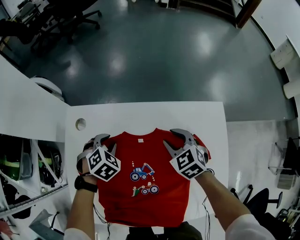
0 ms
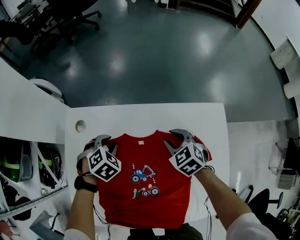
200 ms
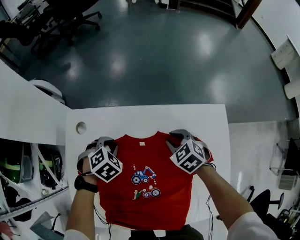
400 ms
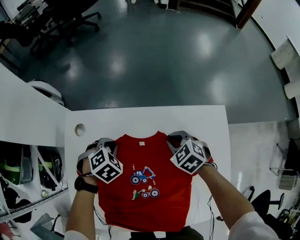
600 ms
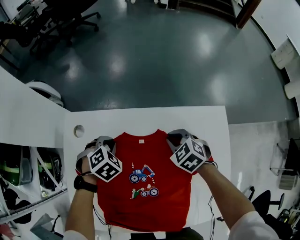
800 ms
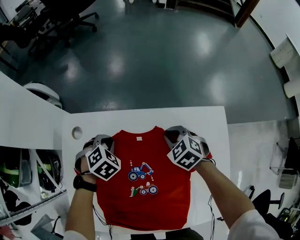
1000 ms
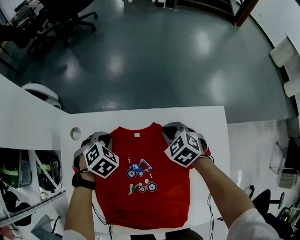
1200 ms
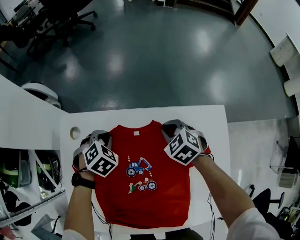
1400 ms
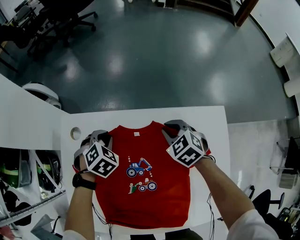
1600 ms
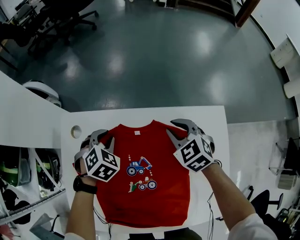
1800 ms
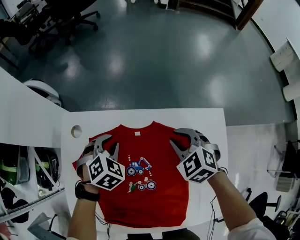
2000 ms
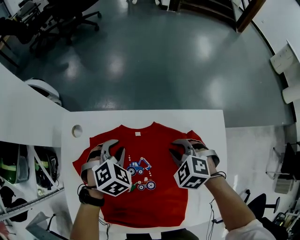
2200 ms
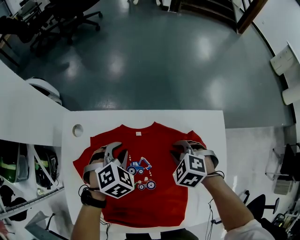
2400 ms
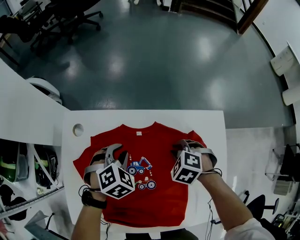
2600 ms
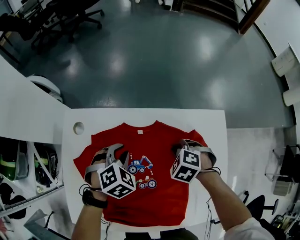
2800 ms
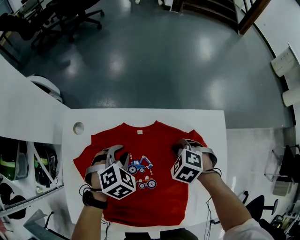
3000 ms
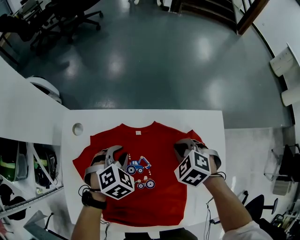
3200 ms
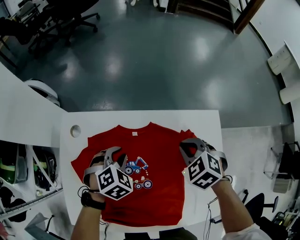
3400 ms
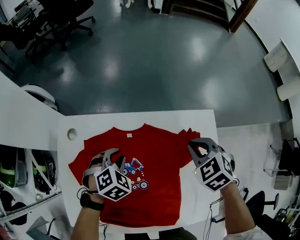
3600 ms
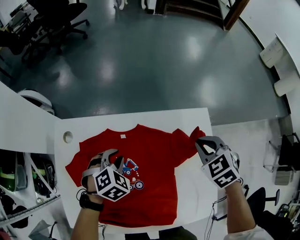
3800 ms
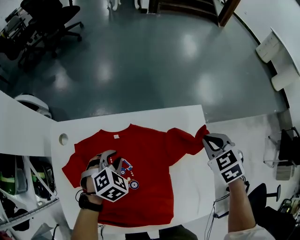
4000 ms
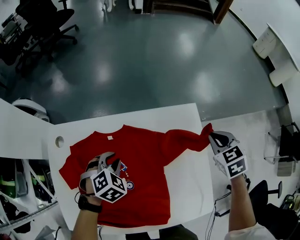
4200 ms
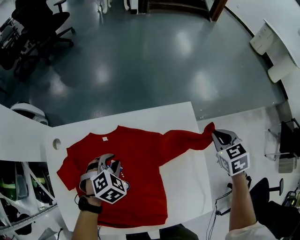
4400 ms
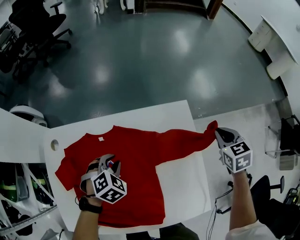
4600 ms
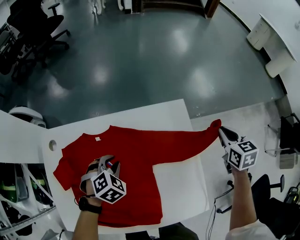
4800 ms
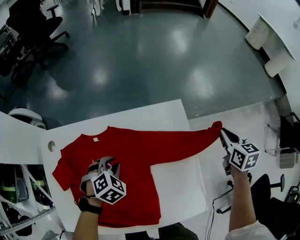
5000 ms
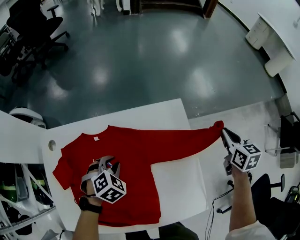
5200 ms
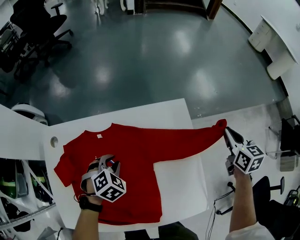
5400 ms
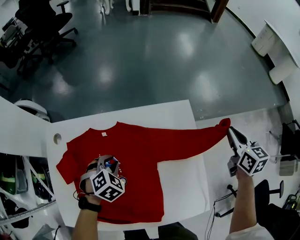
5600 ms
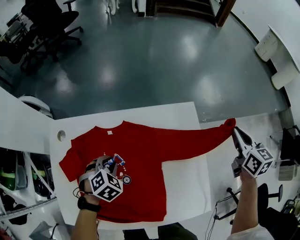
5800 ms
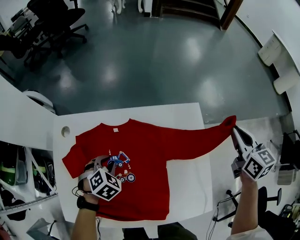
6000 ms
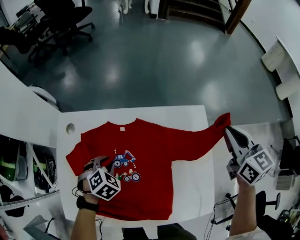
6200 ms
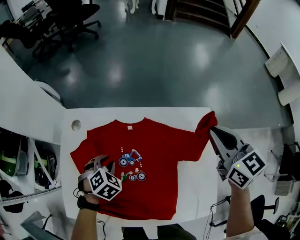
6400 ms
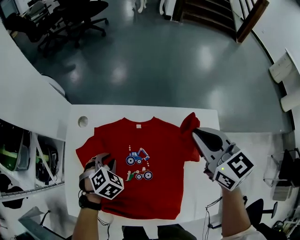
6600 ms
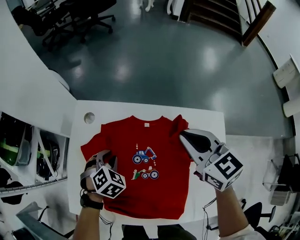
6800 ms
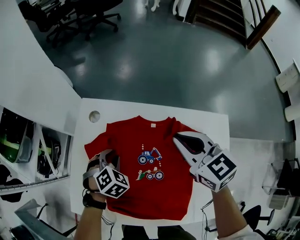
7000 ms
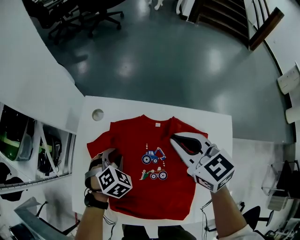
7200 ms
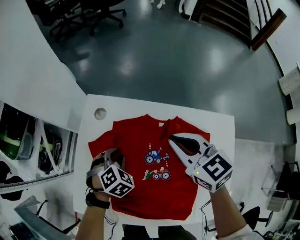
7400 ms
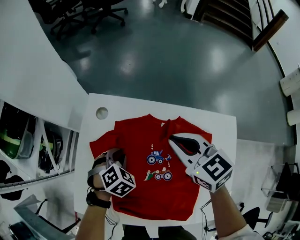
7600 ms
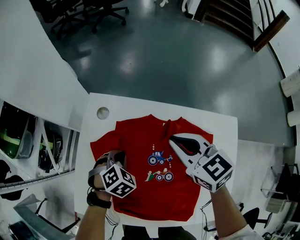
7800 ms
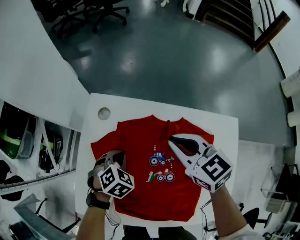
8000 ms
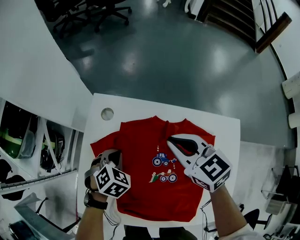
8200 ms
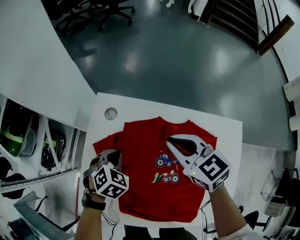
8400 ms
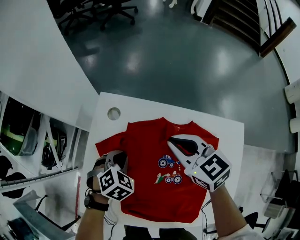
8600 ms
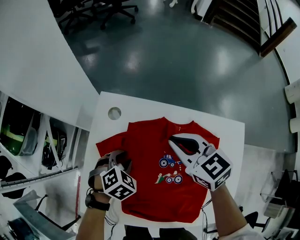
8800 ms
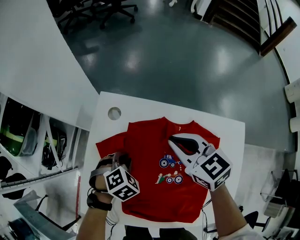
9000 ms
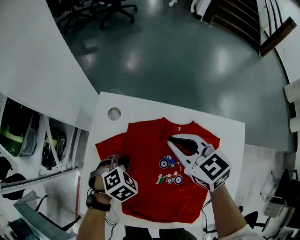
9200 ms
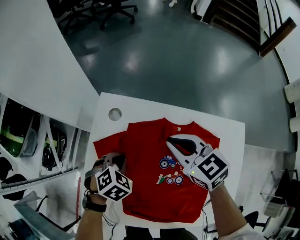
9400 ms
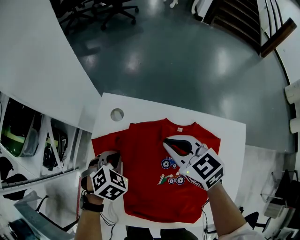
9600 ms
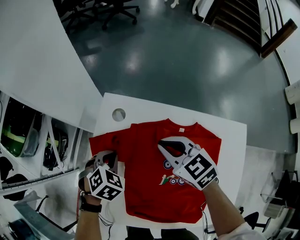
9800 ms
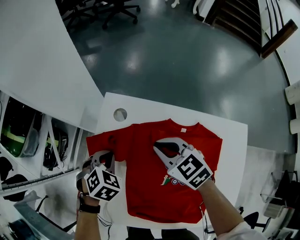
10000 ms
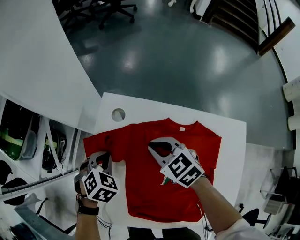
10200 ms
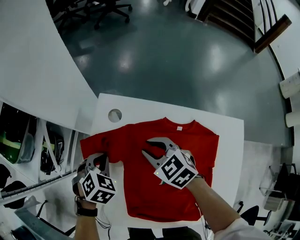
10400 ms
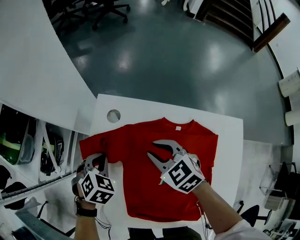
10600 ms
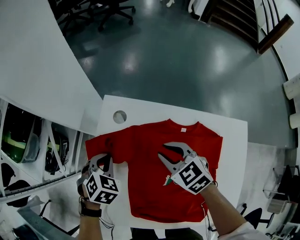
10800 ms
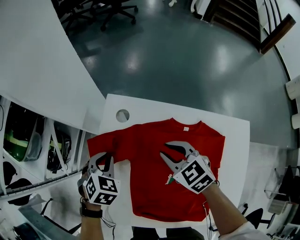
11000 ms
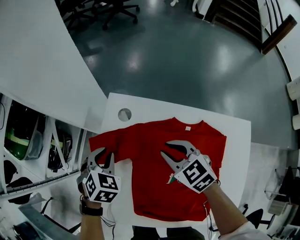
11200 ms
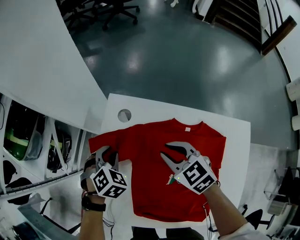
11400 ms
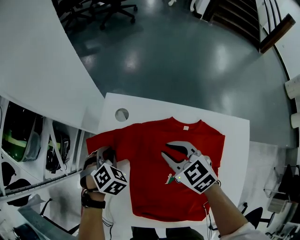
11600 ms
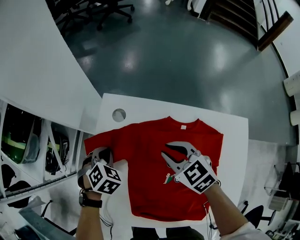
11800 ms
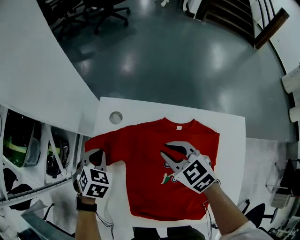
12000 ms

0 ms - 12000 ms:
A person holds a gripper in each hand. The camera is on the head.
0 ms - 1600 ms: Both grippers travel together forward, some 5 cm. The right gripper closes.
1600 ms - 3000 ms: The left gripper ends up some 10 cm from where it was. The right gripper reaches about 5 cm upward, then returns, and turns by approximately 30 degrees.
3000 ms - 4400 ms: The right gripper heads to the right, covering approximately 30 cm, and twists about 40 degrees clockwise, seen from behind, while the left gripper travels to the right by some 10 cm.
4400 ms - 6000 ms: The right gripper is displaced upward by some 10 cm, and changes its angle by some 30 degrees; the left gripper goes roughly 10 cm to the left and backward.
6000 ms - 7600 ms: The right gripper moves about 40 cm, and changes its angle by approximately 40 degrees; the left gripper shifts by approximately 15 cm.
7600 ms - 9000 ms: The right gripper changes place by some 5 cm, while the left gripper closes, then reopens.
9000 ms - 10400 ms: The left gripper moves to the left and forward, approximately 10 cm. Meanwhile the right gripper goes about 15 cm downward and to the left.
10400 ms - 12000 ms: The left gripper opens, then closes again. Meanwhile the right gripper heads to the right, covering about 5 cm.

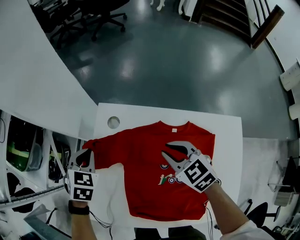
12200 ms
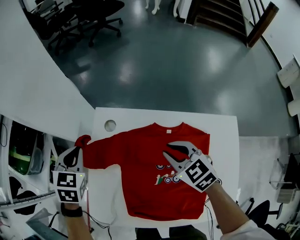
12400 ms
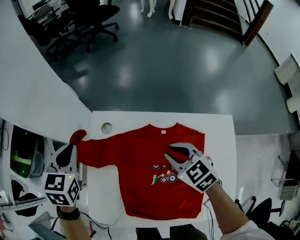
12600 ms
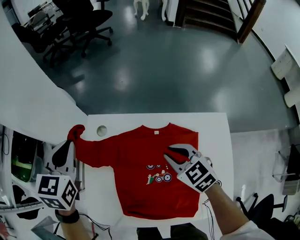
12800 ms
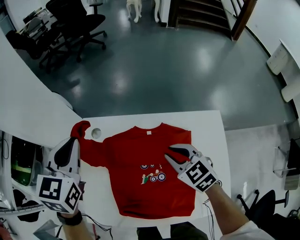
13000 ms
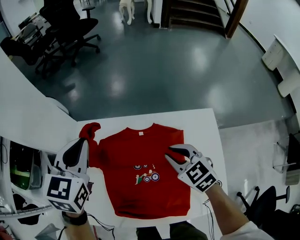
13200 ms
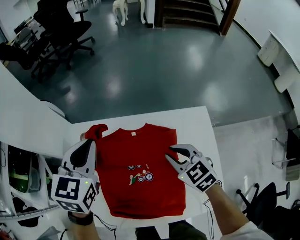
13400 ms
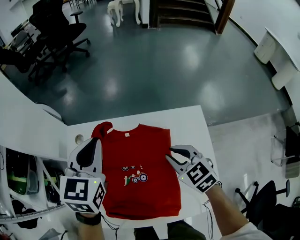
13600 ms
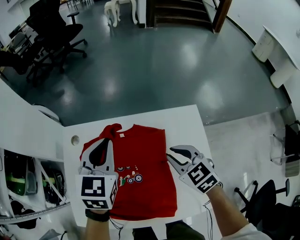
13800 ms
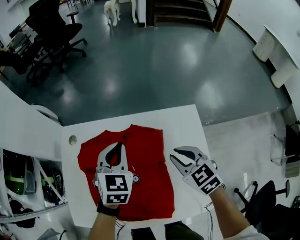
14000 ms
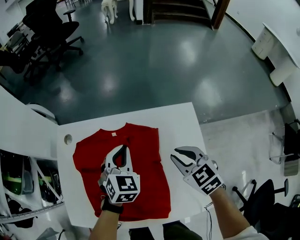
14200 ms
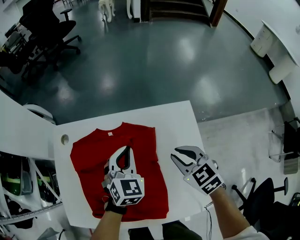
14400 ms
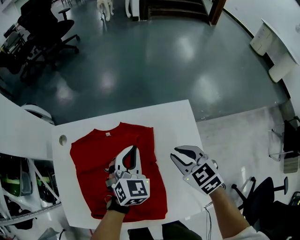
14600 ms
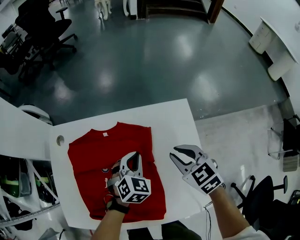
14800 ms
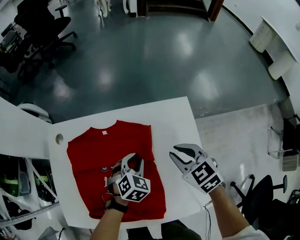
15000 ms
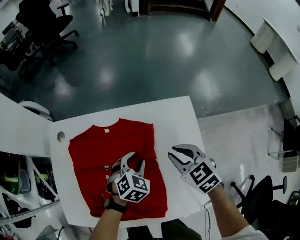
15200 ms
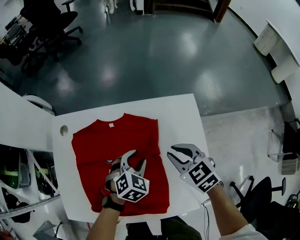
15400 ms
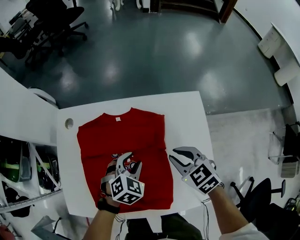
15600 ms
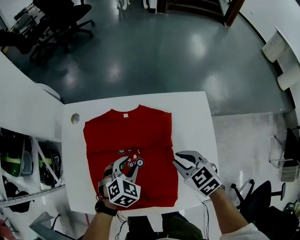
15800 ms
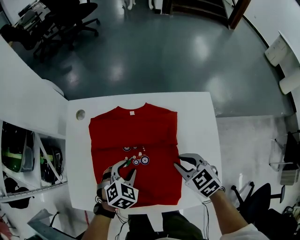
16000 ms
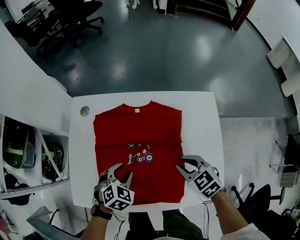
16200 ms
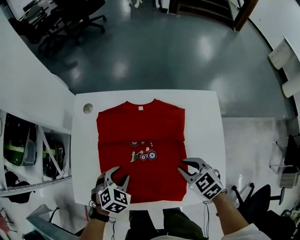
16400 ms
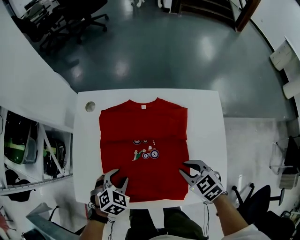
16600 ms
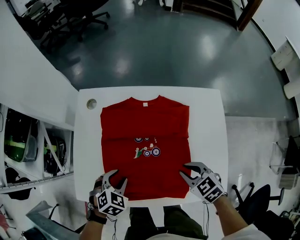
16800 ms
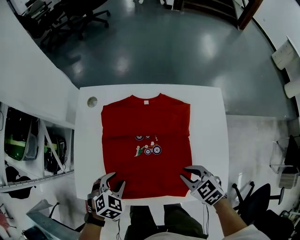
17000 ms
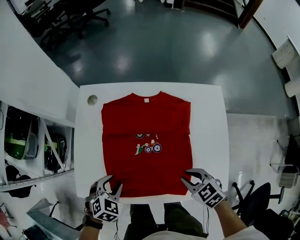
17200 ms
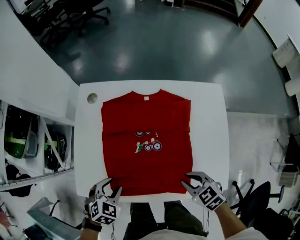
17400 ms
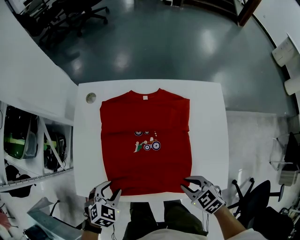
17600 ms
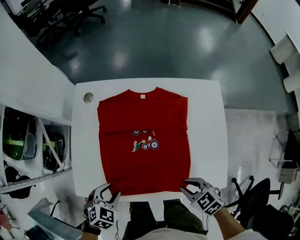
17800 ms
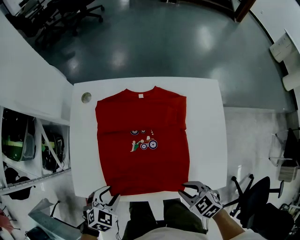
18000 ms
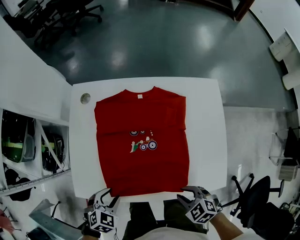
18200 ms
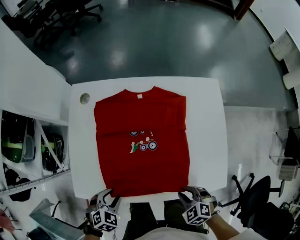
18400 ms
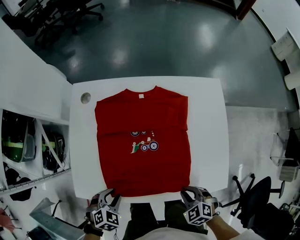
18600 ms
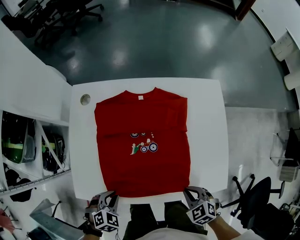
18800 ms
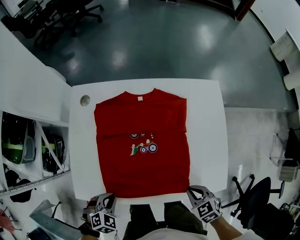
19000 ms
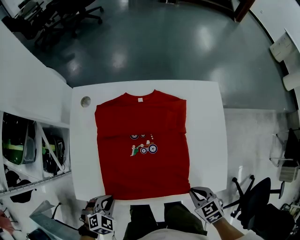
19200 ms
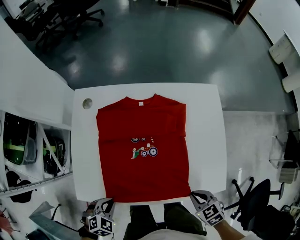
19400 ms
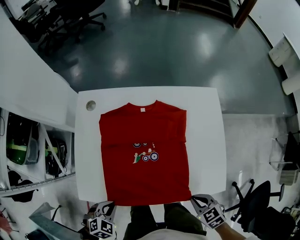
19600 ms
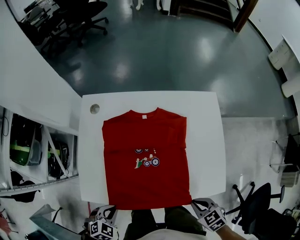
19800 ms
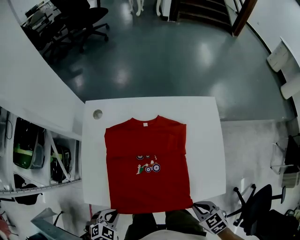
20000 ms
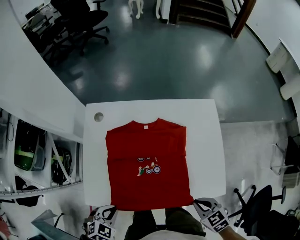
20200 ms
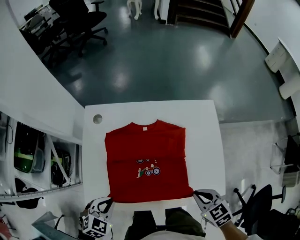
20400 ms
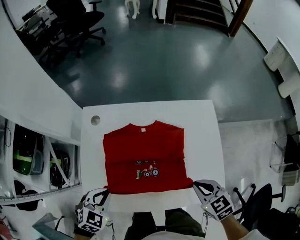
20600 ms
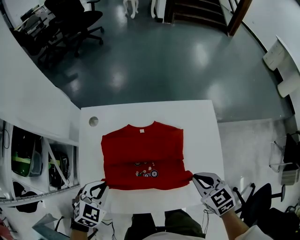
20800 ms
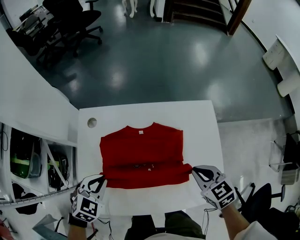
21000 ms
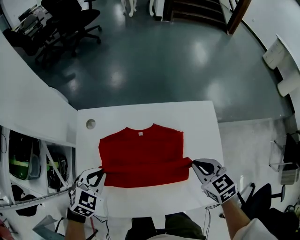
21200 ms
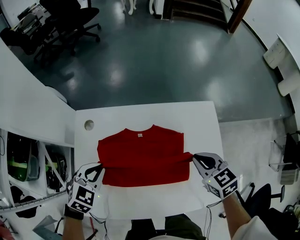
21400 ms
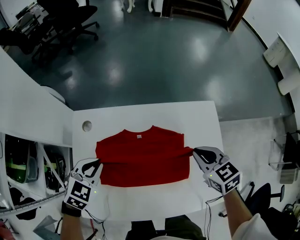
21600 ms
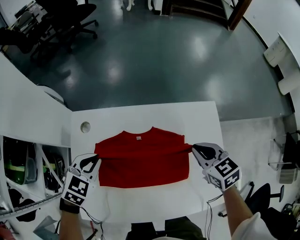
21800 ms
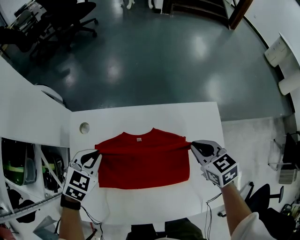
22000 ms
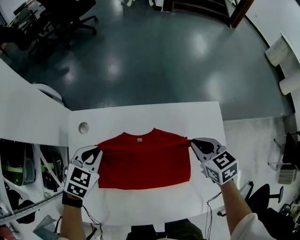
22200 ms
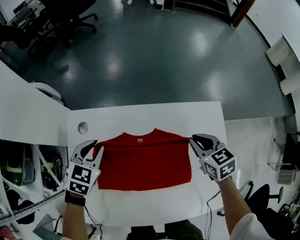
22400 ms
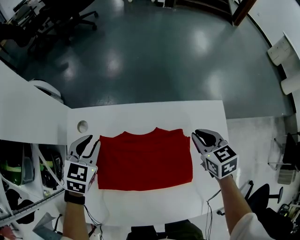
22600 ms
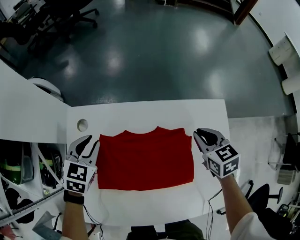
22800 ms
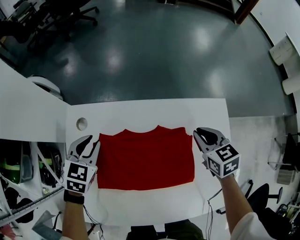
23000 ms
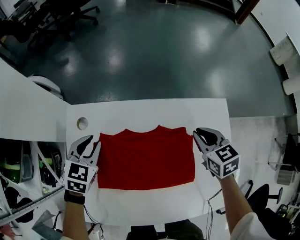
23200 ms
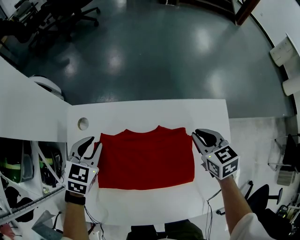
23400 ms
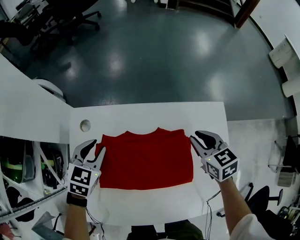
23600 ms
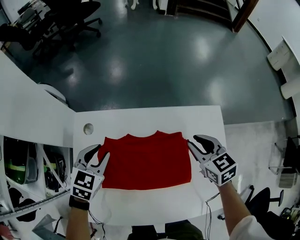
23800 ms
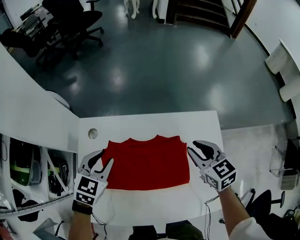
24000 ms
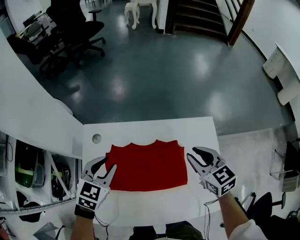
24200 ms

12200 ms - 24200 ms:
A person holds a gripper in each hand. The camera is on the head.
12200 ms - 13800 ms: The left gripper heads to the right and upward, covering roughly 35 cm, and changes its angle by about 30 degrees; the right gripper goes roughly 25 cm to the right and backward.
13800 ms - 15200 ms: The right gripper shifts some 5 cm to the right, while the left gripper shifts some 25 cm downward and to the right, turns by about 40 degrees, and opens its fingers.
15200 ms - 16600 ms: The right gripper travels to the left, backward and downward by some 15 cm. The left gripper shifts approximately 30 cm to the left and backward.
16600 ms - 18200 ms: The left gripper travels backward and to the left by roughly 10 cm. Meanwhile the right gripper is displaced backward by about 15 cm.
18200 ms - 19800 ms: The right gripper moves about 5 cm, and closes its fingers, while the left gripper shifts about 5 cm backward, and closes.
19800 ms - 21200 ms: The left gripper goes some 25 cm forward. The right gripper goes approximately 25 cm forward and upward.
21200 ms - 22600 ms: Both grippers move forward, approximately 15 cm.
22600 ms - 24200 ms: The grippers both shift upward and backward by some 15 cm.
